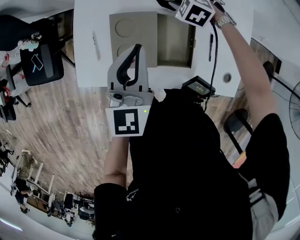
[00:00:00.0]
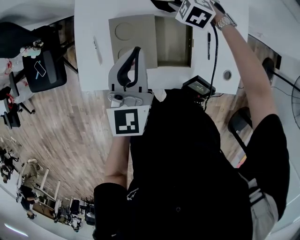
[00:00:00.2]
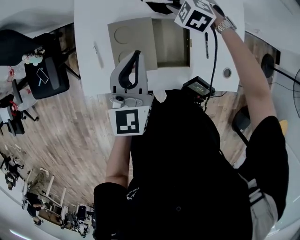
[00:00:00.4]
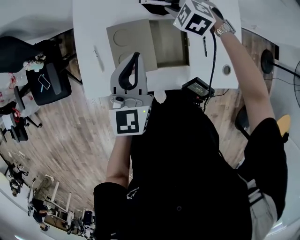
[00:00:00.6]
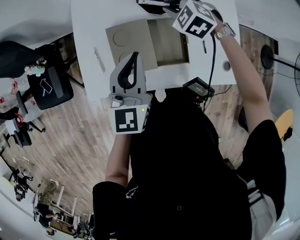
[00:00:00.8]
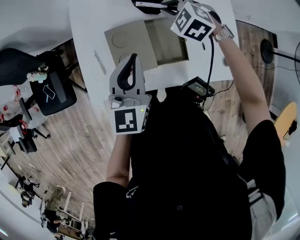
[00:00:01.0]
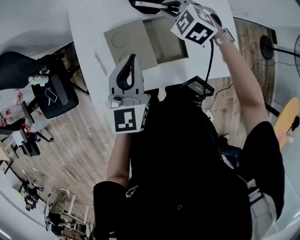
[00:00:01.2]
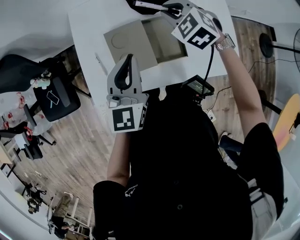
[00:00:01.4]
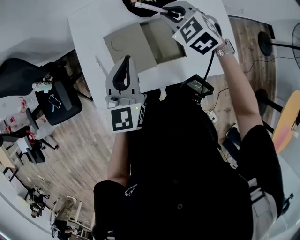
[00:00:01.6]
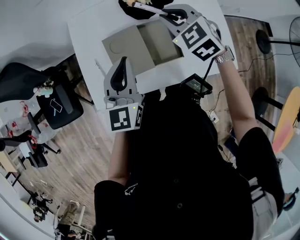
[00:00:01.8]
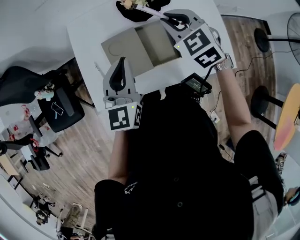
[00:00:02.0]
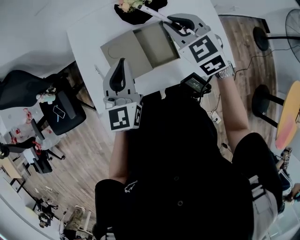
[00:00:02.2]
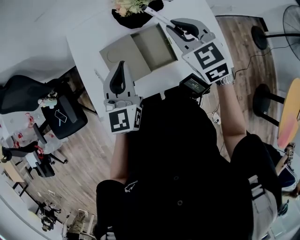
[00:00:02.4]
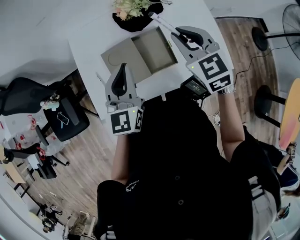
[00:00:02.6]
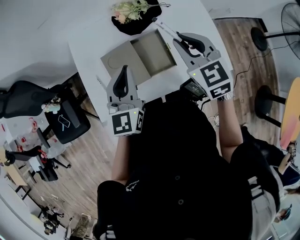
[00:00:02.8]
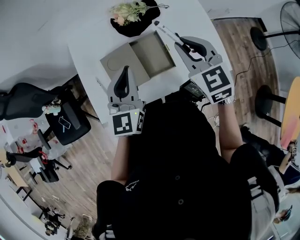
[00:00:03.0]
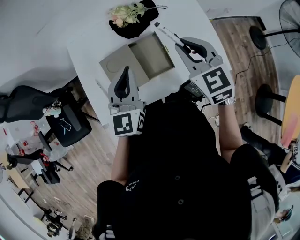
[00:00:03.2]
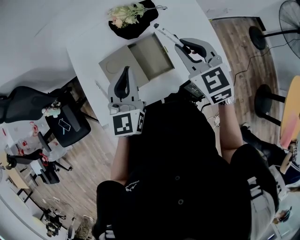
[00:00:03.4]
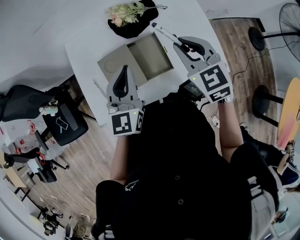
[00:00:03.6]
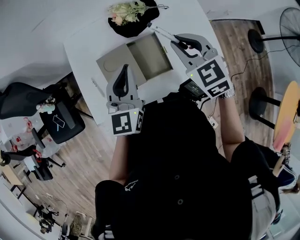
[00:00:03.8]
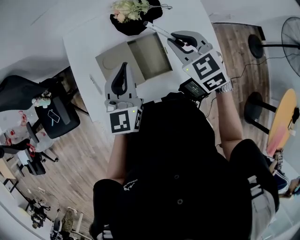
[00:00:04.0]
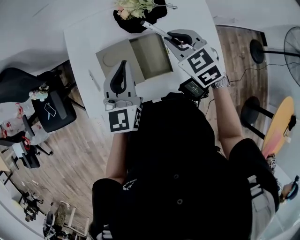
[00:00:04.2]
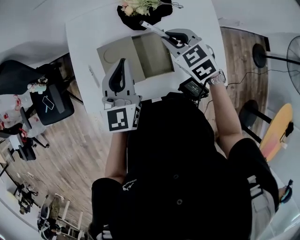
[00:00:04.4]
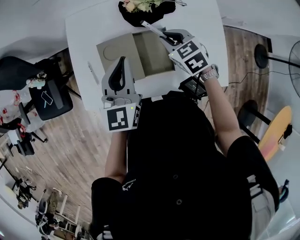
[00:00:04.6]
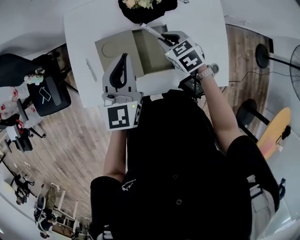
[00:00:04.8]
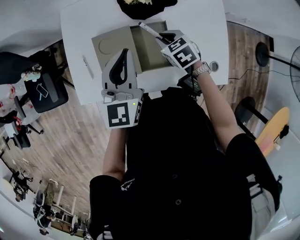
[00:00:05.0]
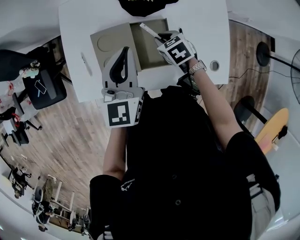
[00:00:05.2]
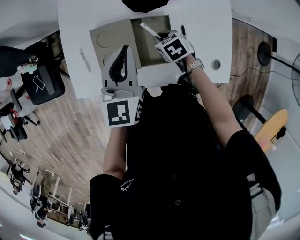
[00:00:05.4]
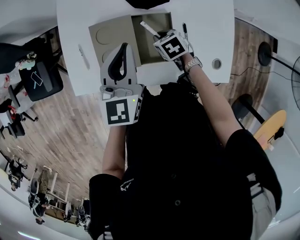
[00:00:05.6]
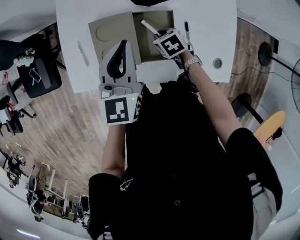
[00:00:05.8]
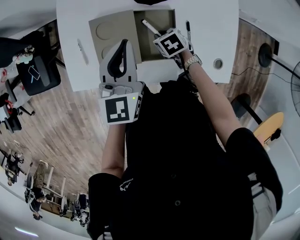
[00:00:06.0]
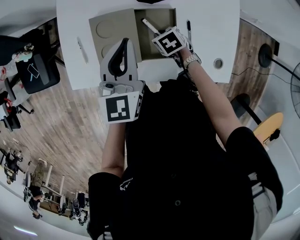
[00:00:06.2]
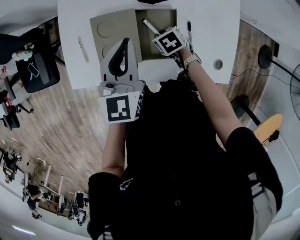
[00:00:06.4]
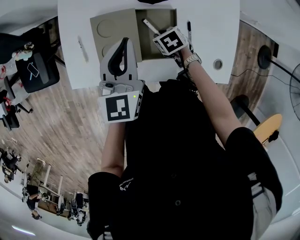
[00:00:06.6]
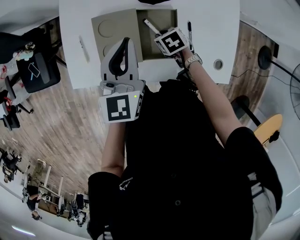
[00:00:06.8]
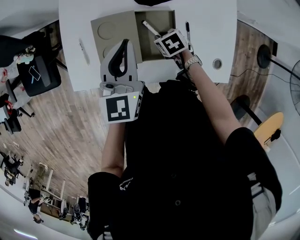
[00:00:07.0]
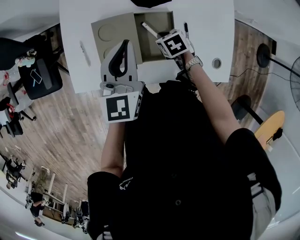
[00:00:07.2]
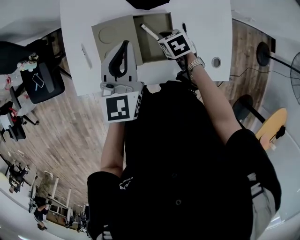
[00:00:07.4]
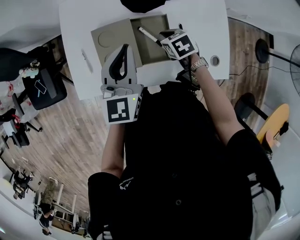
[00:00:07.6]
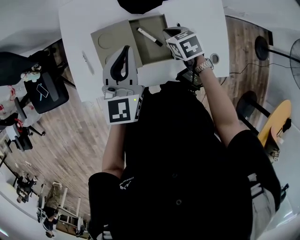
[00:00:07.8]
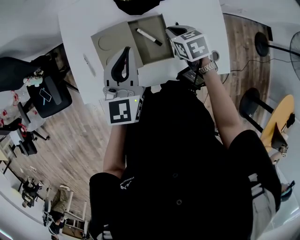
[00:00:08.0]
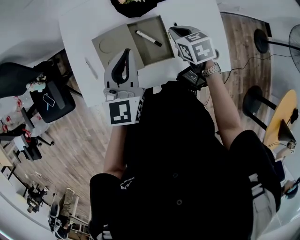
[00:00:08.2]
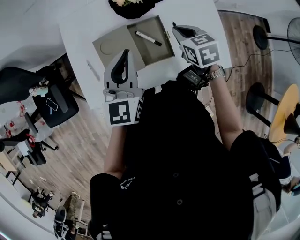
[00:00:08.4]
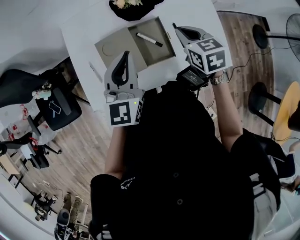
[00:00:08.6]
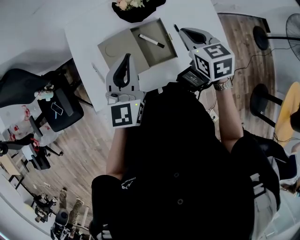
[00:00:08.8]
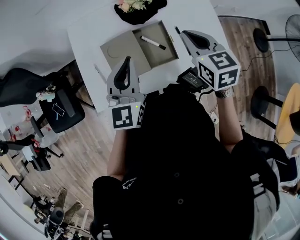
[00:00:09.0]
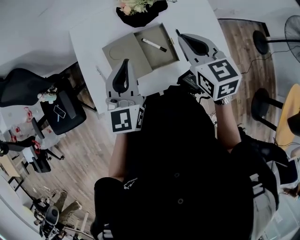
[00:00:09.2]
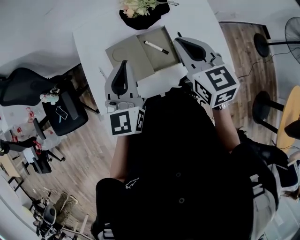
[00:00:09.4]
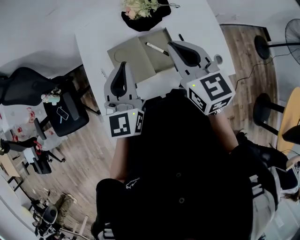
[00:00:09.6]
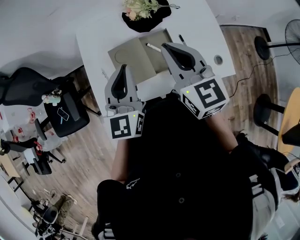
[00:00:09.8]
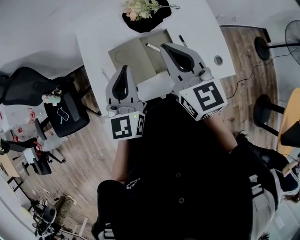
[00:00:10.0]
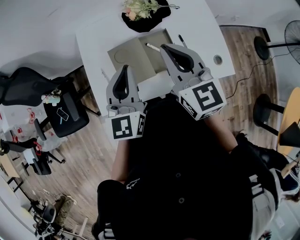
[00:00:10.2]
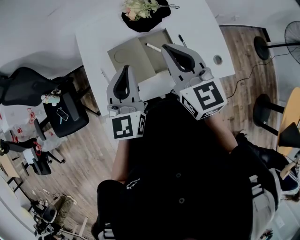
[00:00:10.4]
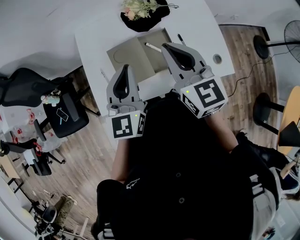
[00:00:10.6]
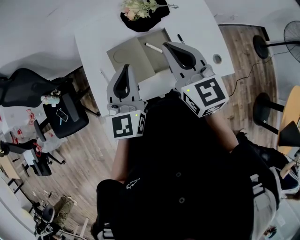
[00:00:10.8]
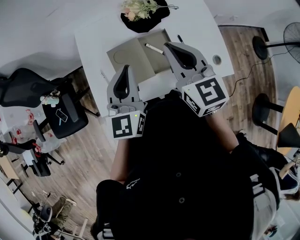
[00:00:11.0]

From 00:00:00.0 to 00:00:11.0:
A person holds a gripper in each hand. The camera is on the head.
From 00:00:00.0 to 00:00:01.6: The right gripper travels upward and backward by roughly 20 cm, and changes its angle by approximately 40 degrees; the left gripper shifts about 5 cm backward.
From 00:00:01.6 to 00:00:03.2: The right gripper goes approximately 15 cm backward, upward and to the right, and turns by some 30 degrees; the left gripper shifts roughly 5 cm to the right.
From 00:00:03.2 to 00:00:04.8: The right gripper heads downward and forward, covering roughly 20 cm, and rotates about 30 degrees. Meanwhile the left gripper travels forward by about 5 cm.
From 00:00:04.8 to 00:00:06.2: The right gripper moves downward, roughly 15 cm, and swivels about 20 degrees.
From 00:00:06.2 to 00:00:07.8: The right gripper moves upward, about 10 cm.
From 00:00:07.8 to 00:00:09.4: The left gripper travels upward, backward and to the left by some 10 cm. The right gripper heads upward, covering roughly 25 cm, and tips its fingers upward by approximately 40 degrees.

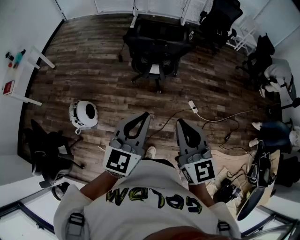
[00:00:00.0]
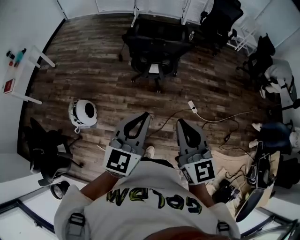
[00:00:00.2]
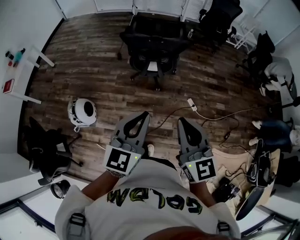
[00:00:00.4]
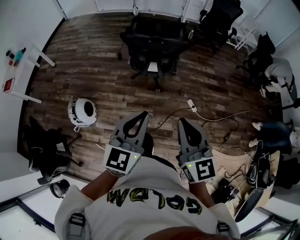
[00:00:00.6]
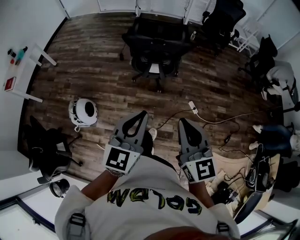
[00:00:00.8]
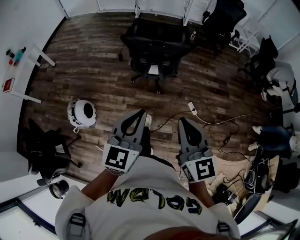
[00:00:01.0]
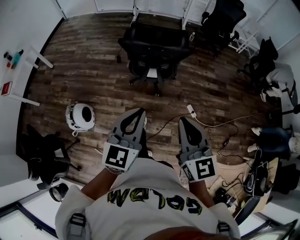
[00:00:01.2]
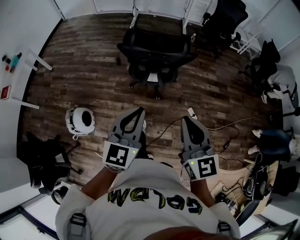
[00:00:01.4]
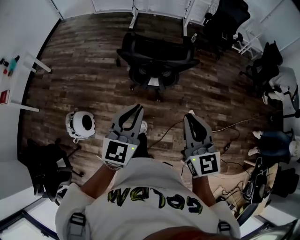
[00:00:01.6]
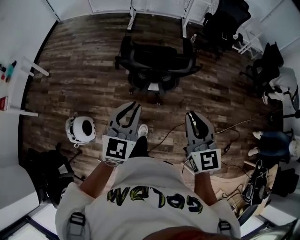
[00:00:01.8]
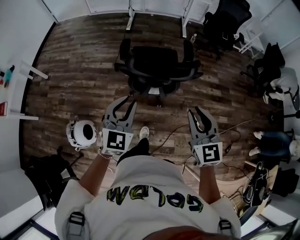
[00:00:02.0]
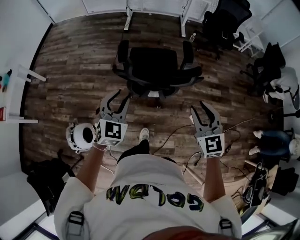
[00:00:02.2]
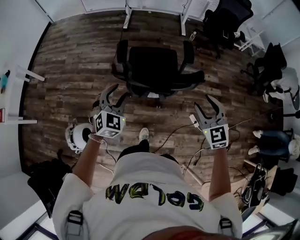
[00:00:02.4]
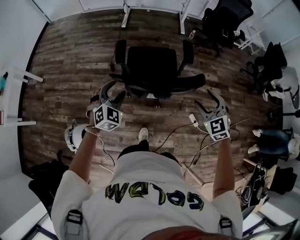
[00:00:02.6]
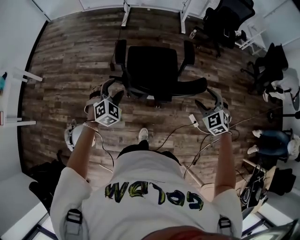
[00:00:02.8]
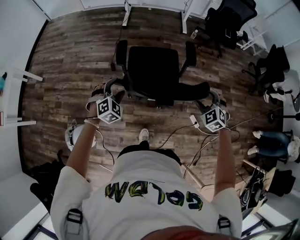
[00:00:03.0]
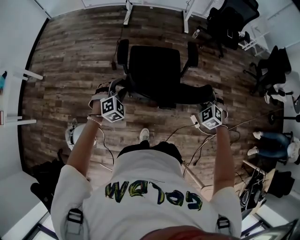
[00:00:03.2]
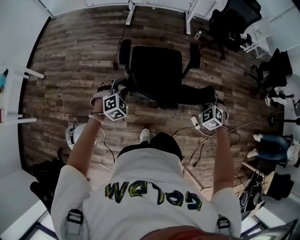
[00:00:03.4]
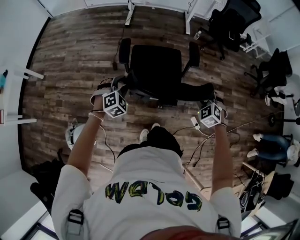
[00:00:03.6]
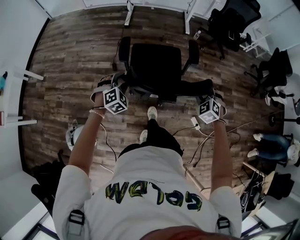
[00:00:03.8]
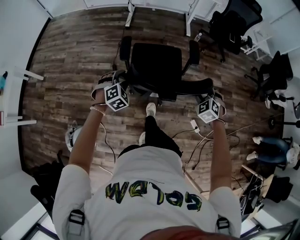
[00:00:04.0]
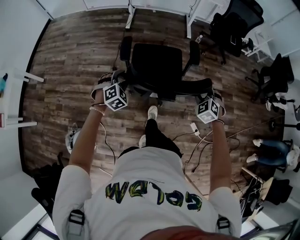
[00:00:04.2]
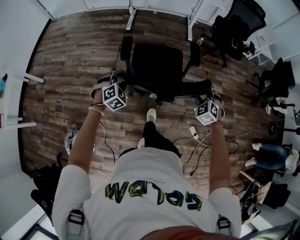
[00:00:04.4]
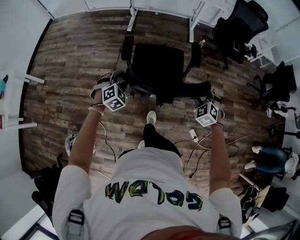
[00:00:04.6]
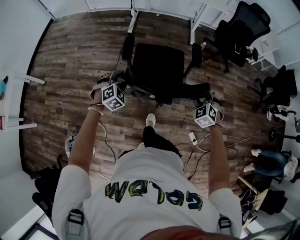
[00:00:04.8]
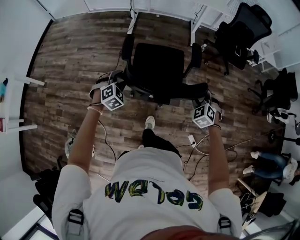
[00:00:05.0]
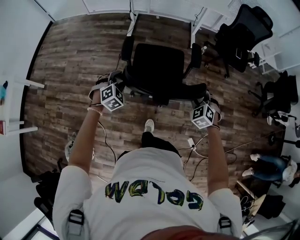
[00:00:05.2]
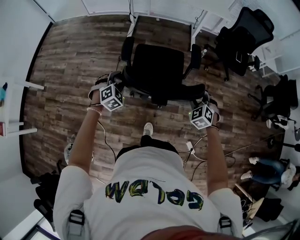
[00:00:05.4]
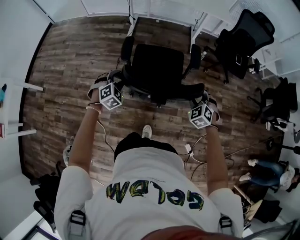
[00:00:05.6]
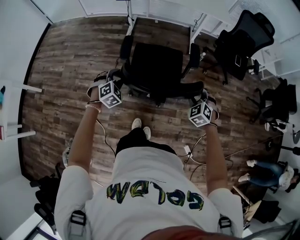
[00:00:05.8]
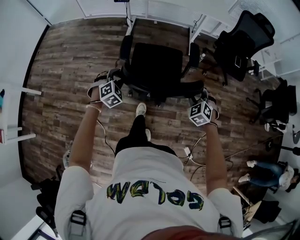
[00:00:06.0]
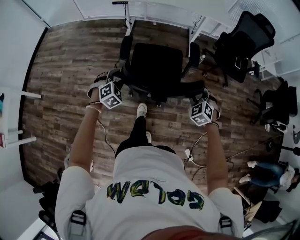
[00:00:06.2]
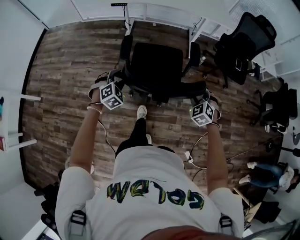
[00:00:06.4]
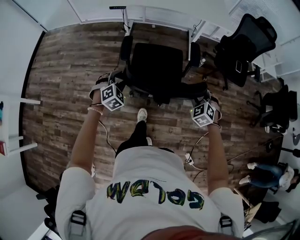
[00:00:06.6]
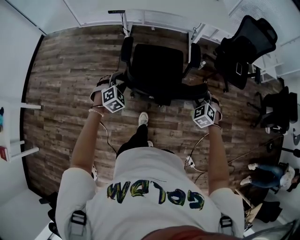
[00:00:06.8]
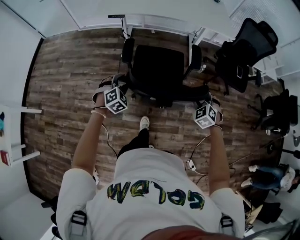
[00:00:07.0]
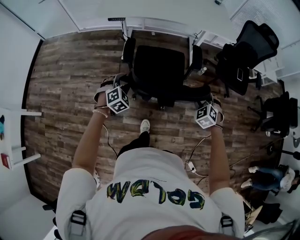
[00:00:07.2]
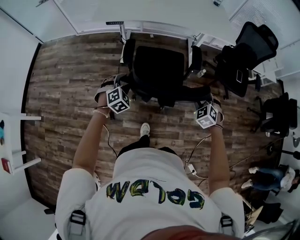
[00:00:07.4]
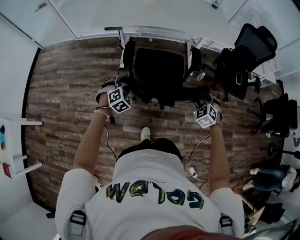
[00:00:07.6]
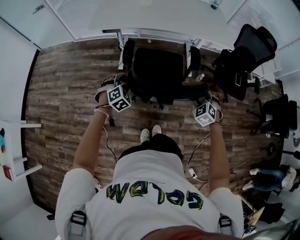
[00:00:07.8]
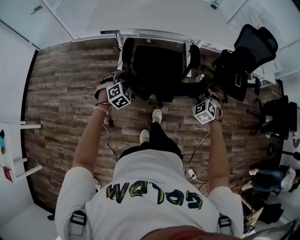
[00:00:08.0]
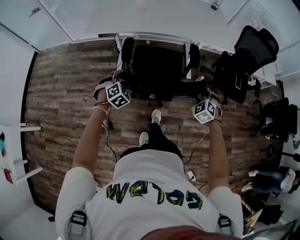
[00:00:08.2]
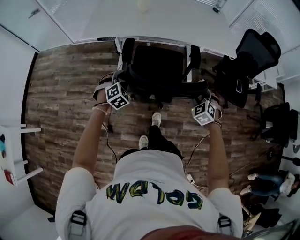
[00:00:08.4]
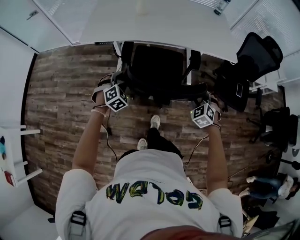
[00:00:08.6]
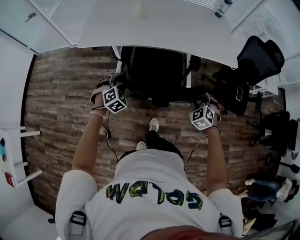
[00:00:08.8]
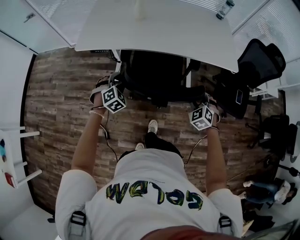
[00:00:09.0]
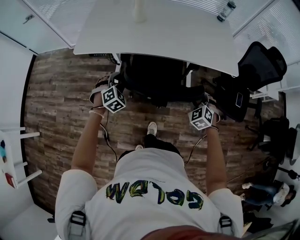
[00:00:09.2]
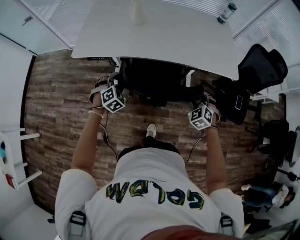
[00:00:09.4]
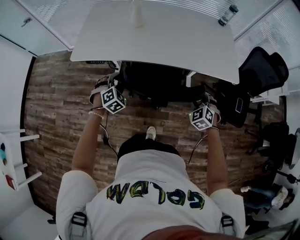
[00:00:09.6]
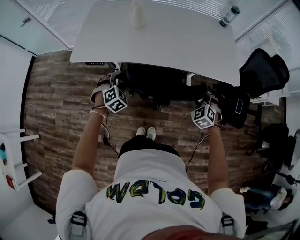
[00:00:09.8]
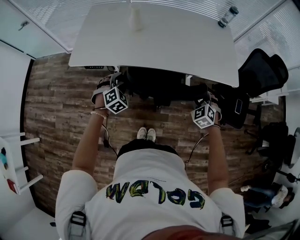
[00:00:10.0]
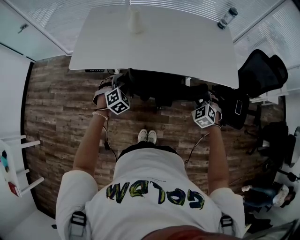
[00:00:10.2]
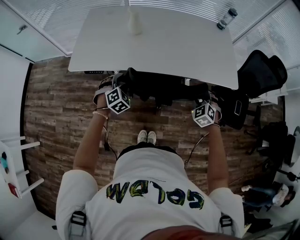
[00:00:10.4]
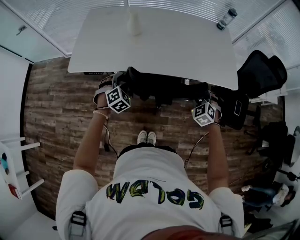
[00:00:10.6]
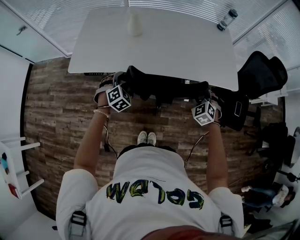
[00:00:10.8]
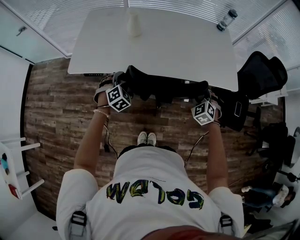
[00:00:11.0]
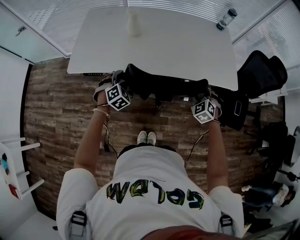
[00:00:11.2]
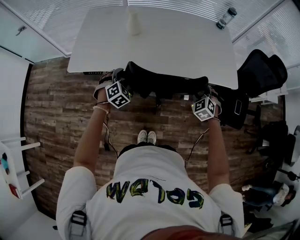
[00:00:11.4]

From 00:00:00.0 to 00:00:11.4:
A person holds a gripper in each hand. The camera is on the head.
From 00:00:00.0 to 00:00:01.4: The grippers both shift forward by roughly 15 cm.
From 00:00:01.4 to 00:00:02.8: Both grippers travel together forward and downward, about 40 cm. The right gripper tips its fingers downward by roughly 30 degrees, and opens; the left gripper points its fingers some 30 degrees further downward, and opens its fingers.
From 00:00:02.8 to 00:00:04.2: The right gripper travels forward and downward by about 15 cm, and closes up. The left gripper moves forward, roughly 15 cm.
From 00:00:04.2 to 00:00:05.6: The grippers both shift forward by about 25 cm.
From 00:00:05.6 to 00:00:07.2: The two grippers go about 25 cm forward.
From 00:00:07.2 to 00:00:08.6: Both grippers travel together forward, about 25 cm.
From 00:00:08.6 to 00:00:10.0: The grippers both shift forward by some 20 cm.
From 00:00:10.0 to 00:00:11.4: Both grippers move forward, approximately 5 cm.

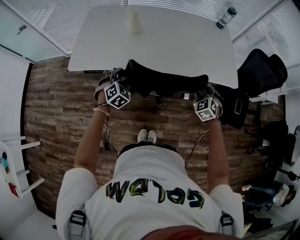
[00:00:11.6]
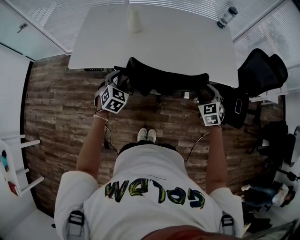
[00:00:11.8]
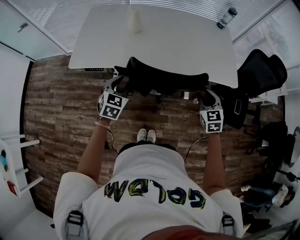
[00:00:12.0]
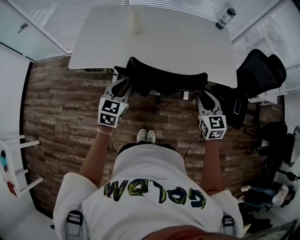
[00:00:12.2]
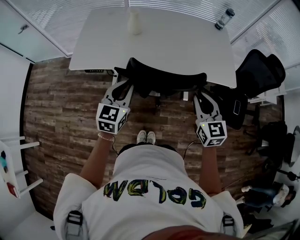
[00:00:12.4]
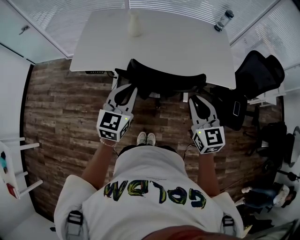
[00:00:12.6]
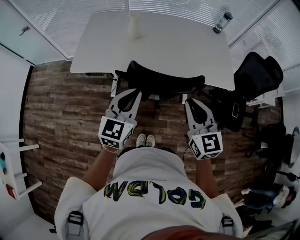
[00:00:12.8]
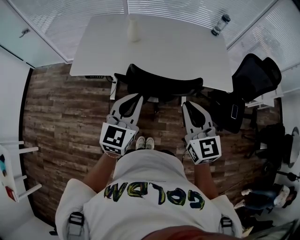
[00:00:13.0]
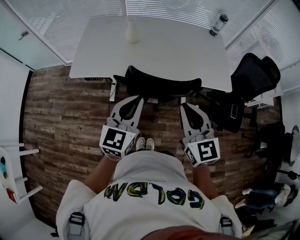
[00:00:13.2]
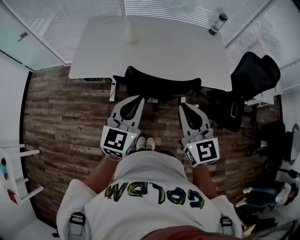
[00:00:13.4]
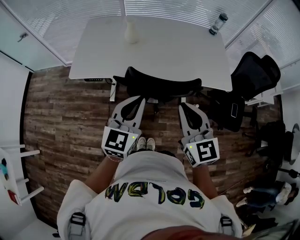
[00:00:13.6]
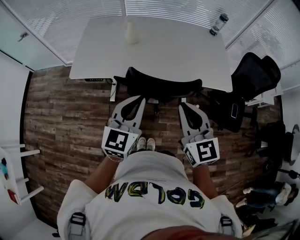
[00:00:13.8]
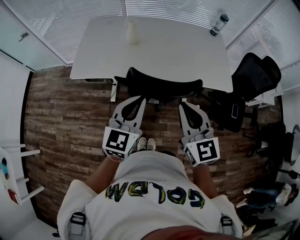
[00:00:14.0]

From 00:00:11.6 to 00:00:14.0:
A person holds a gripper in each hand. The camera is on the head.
From 00:00:11.6 to 00:00:12.8: The left gripper travels upward and backward by about 25 cm, tilts its fingers roughly 30 degrees upward, and closes. The right gripper moves upward, backward and to the left, some 25 cm, swivels roughly 50 degrees, and closes its fingers.
From 00:00:12.8 to 00:00:14.0: The right gripper shifts by approximately 5 cm.
